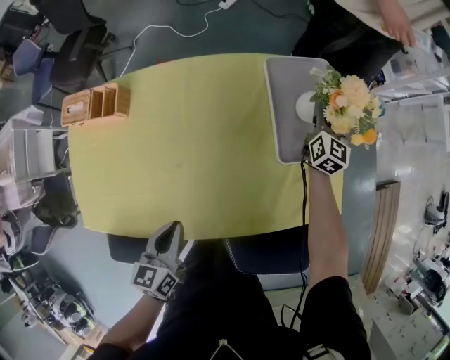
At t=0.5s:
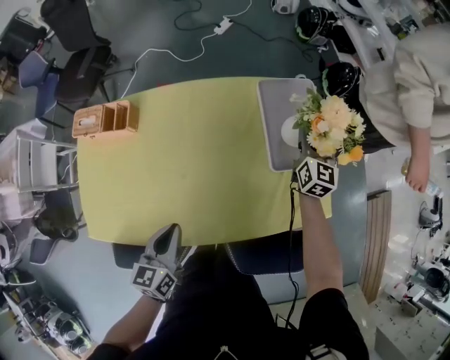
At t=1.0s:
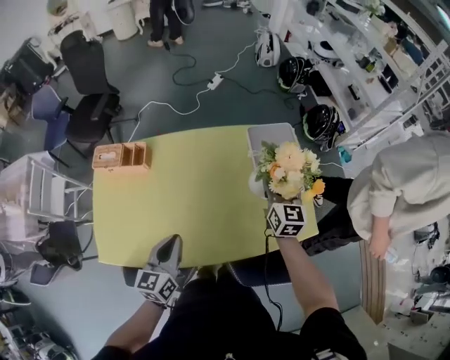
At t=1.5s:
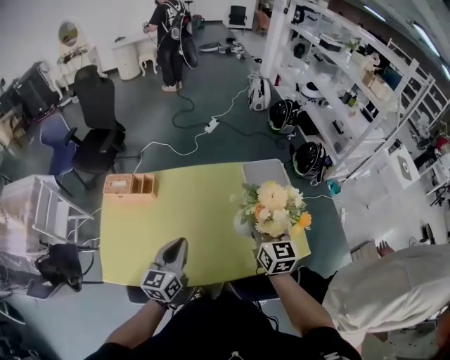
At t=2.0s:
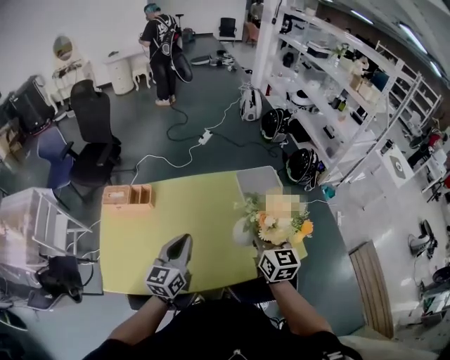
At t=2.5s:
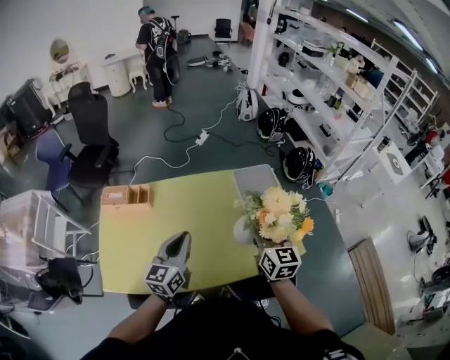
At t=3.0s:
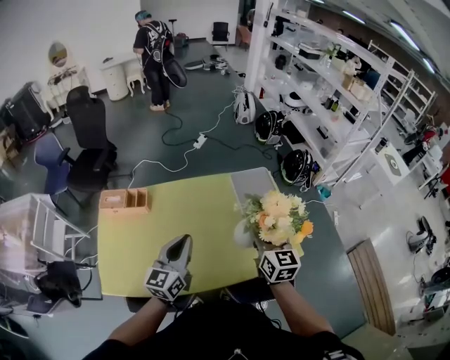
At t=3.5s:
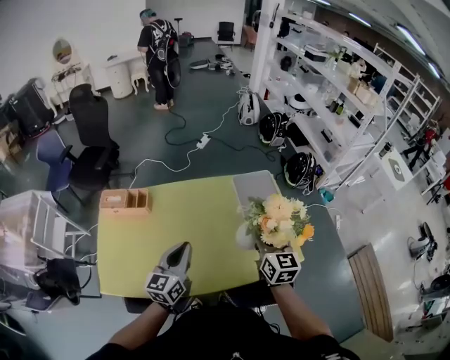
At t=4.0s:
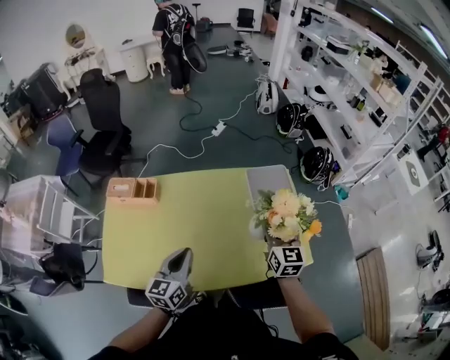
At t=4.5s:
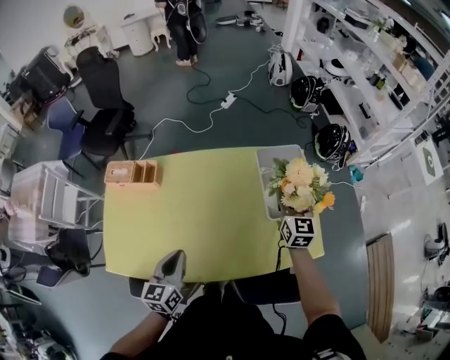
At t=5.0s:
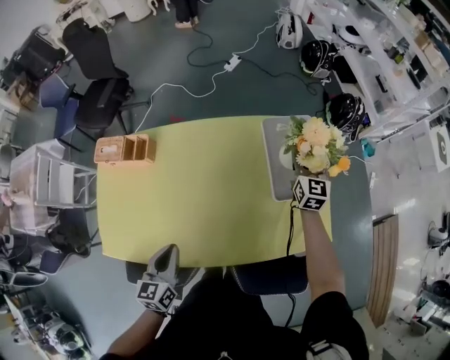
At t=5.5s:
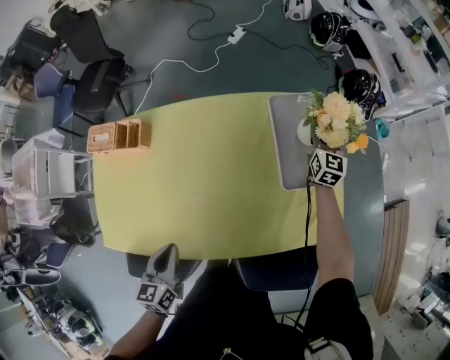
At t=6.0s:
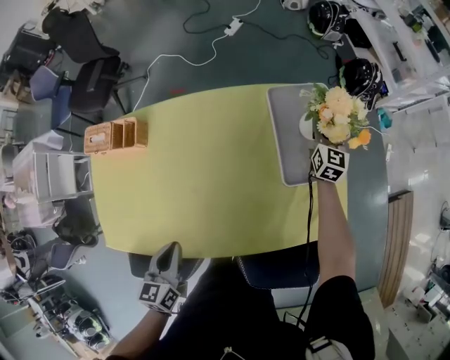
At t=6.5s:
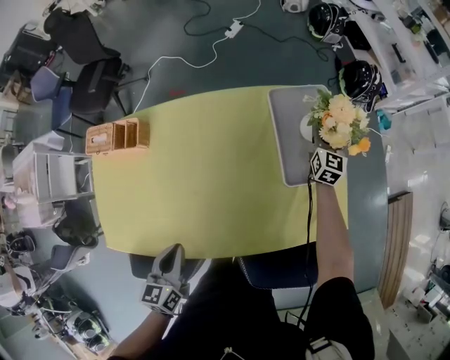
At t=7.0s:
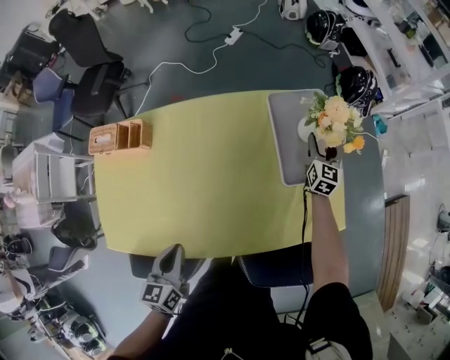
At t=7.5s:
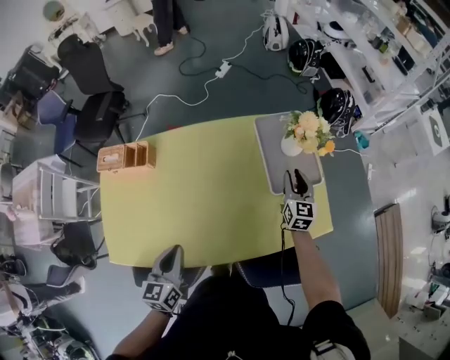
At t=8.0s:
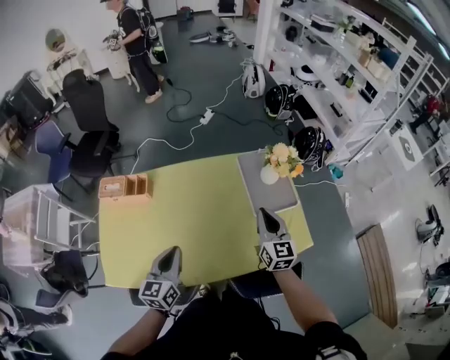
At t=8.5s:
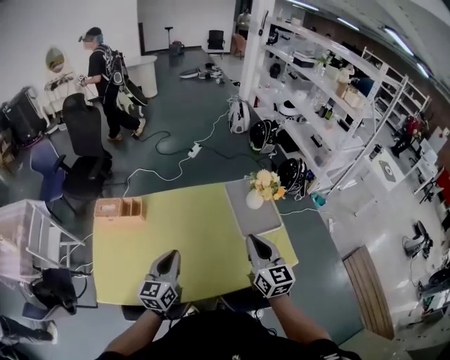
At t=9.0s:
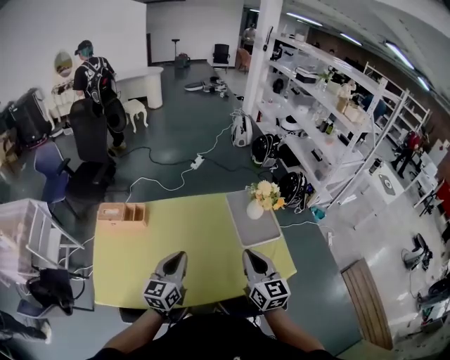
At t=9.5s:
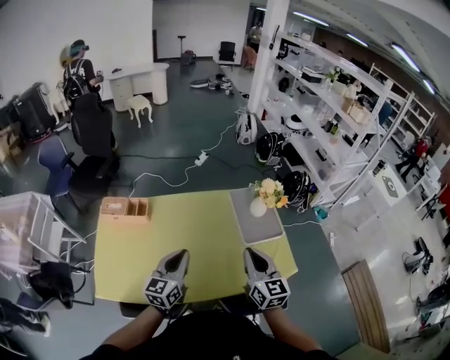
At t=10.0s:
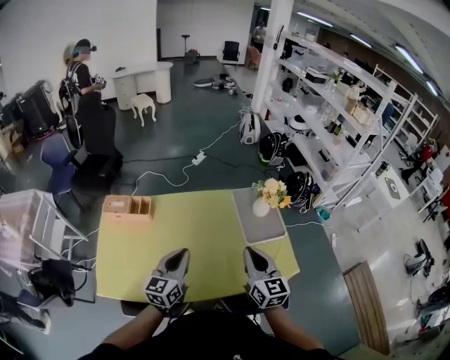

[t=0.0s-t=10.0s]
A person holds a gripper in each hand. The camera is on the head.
t=0.0s to t=2.0s: The right gripper shifts some 50 cm backward, upward and to the left. The left gripper moves upward, approximately 25 cm, and swivels roughly 30 degrees.
t=2.0s to t=4.0s: The right gripper heads forward, covering some 5 cm. The left gripper ends up about 5 cm from where it was.
t=4.0s to t=6.0s: The right gripper is displaced forward, downward and to the right by about 40 cm. Meanwhile the left gripper shifts roughly 15 cm downward, and turns by roughly 20 degrees.
t=6.0s to t=8.0s: The right gripper goes about 40 cm backward, upward and to the left, and closes. Meanwhile the left gripper is displaced upward by some 15 cm, and rotates approximately 20 degrees.
t=8.0s to t=10.0s: The left gripper heads upward, covering approximately 5 cm. Meanwhile the right gripper shifts approximately 15 cm backward and upward.

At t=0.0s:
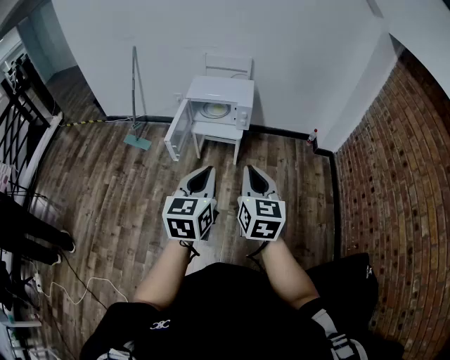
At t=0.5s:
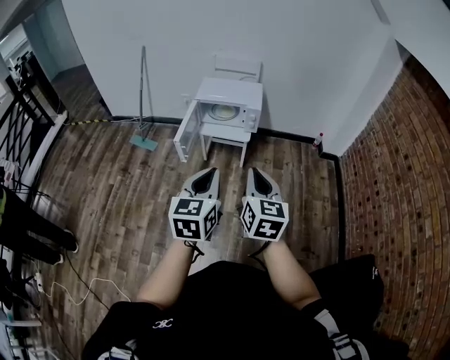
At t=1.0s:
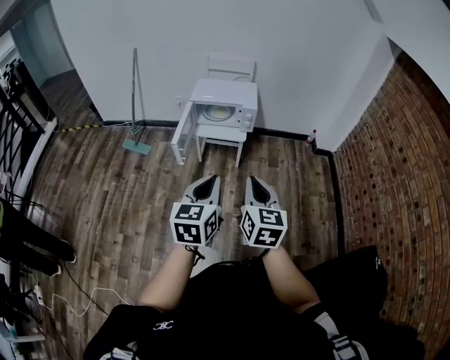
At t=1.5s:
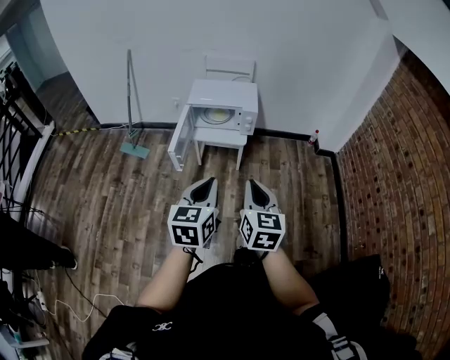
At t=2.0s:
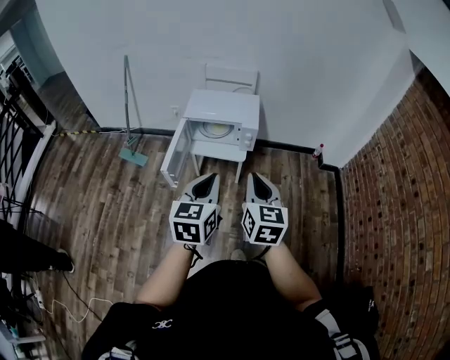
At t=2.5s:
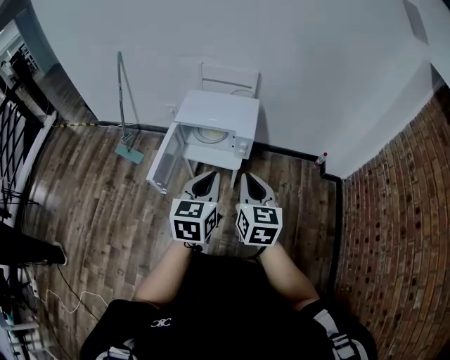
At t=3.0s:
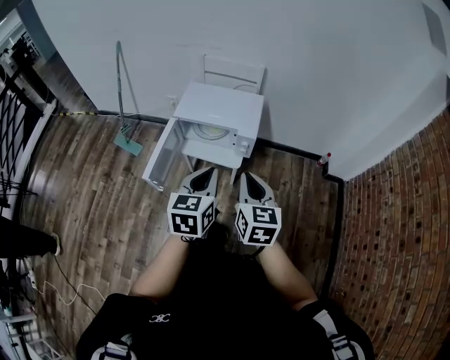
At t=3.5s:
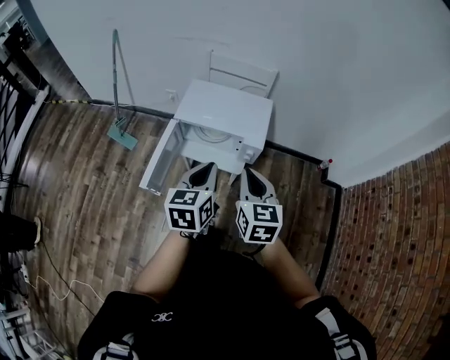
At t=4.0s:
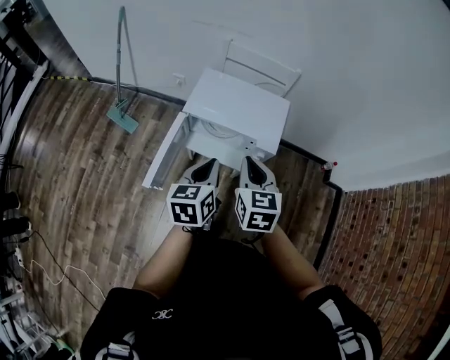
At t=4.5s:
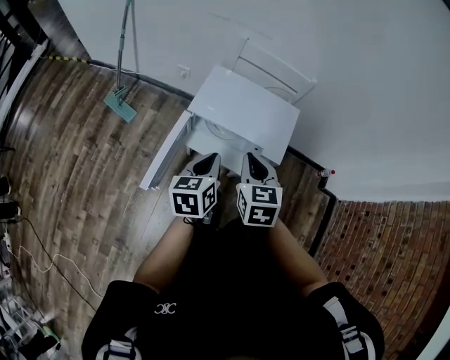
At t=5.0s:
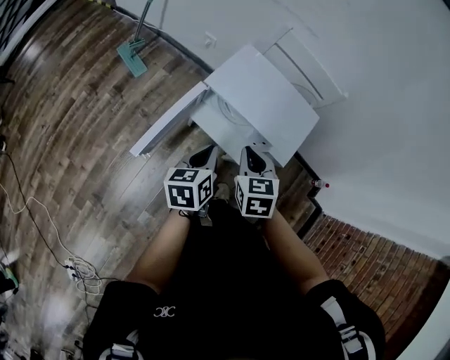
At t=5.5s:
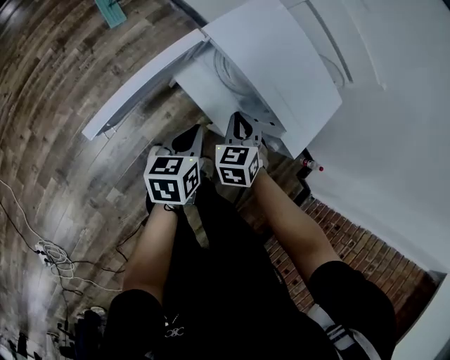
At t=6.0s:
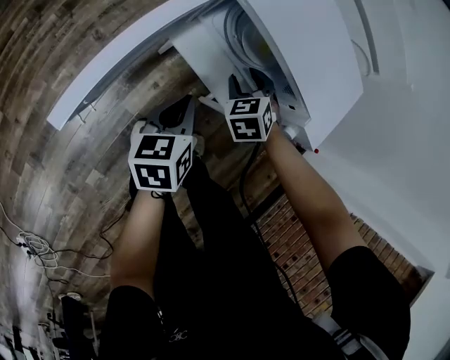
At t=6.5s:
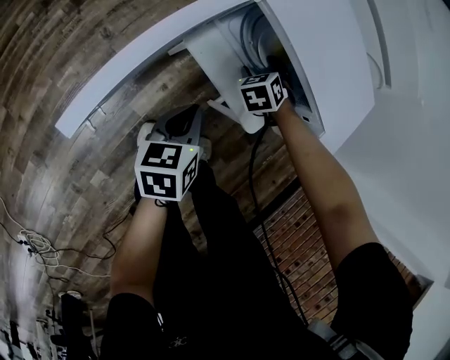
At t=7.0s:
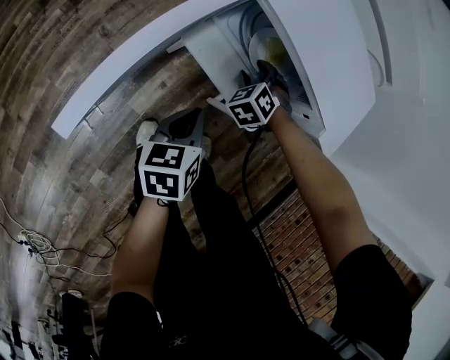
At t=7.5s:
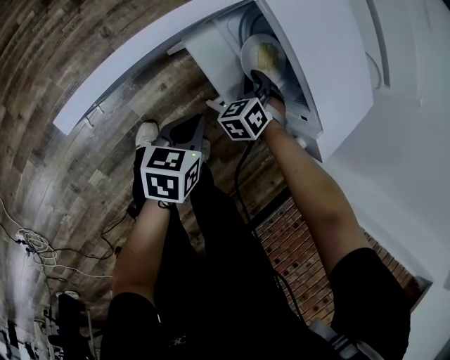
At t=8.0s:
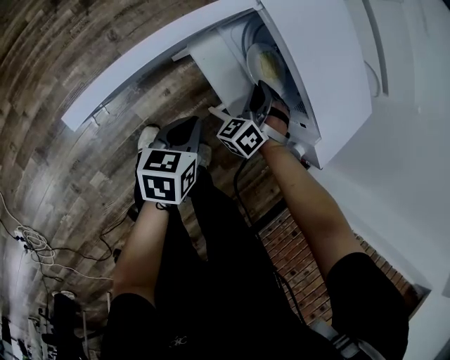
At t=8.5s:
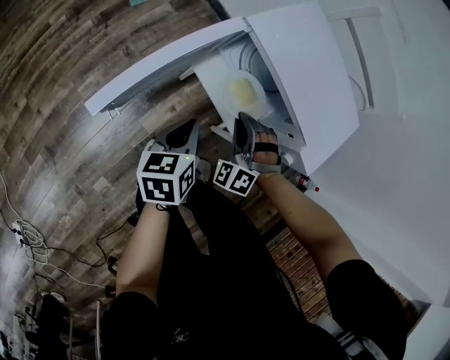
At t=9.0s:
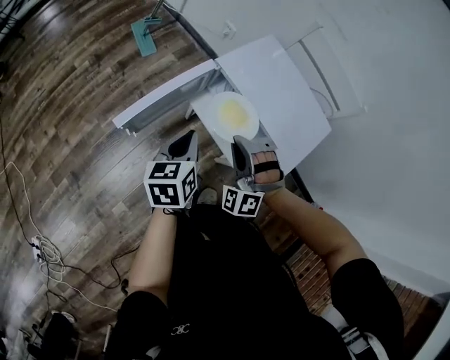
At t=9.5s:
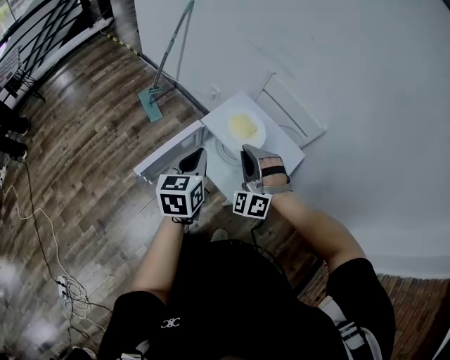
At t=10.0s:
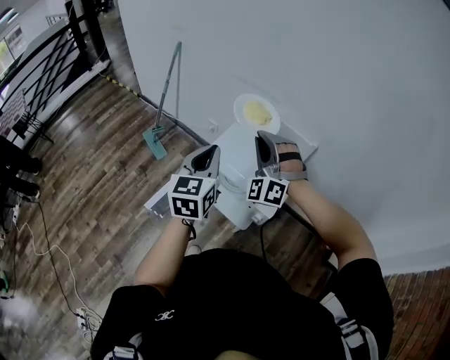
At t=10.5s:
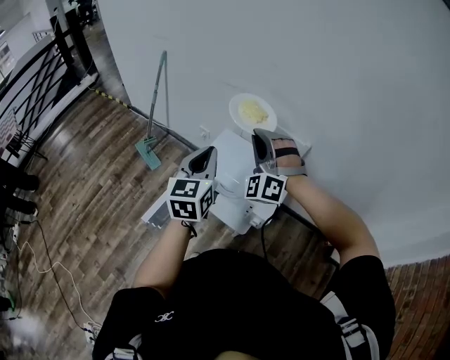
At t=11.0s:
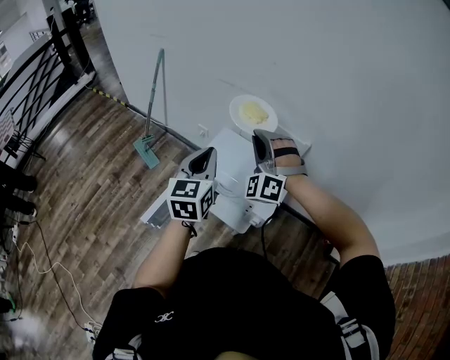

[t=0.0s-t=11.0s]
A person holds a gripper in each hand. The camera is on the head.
t=0.0s to t=2.0s: The grippers both shift forward by about 20 cm.
t=2.0s to t=3.5s: Both grippers travel together forward, approximately 25 cm.
t=3.5s to t=5.5s: The right gripper shifts some 40 cm downward and forward, and rolls counterclockwise, seen from behind, by some 50 degrees. Meanwhile the left gripper travels downward by approximately 30 cm, and swivels approximately 40 degrees.
t=5.5s to t=7.5s: Both grippers travel together downward, roughly 15 cm. The right gripper rotates roughly 30 degrees, and opens, then closes again.
t=7.5s to t=9.0s: The two grippers go about 25 cm upward. The left gripper changes its angle by approximately 20 degrees. Meanwhile the right gripper swivels about 50 degrees.
t=9.0s to t=11.0s: The left gripper heads upward, covering approximately 30 cm, and turns by about 30 degrees. The right gripper is displaced upward and forward by some 35 cm, and rotates some 20 degrees.

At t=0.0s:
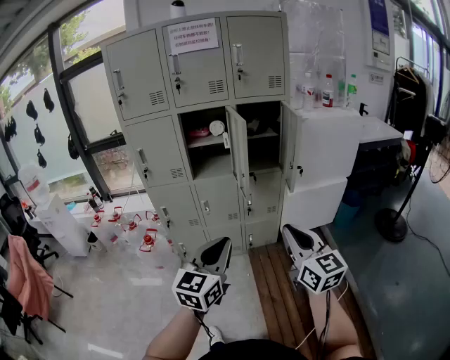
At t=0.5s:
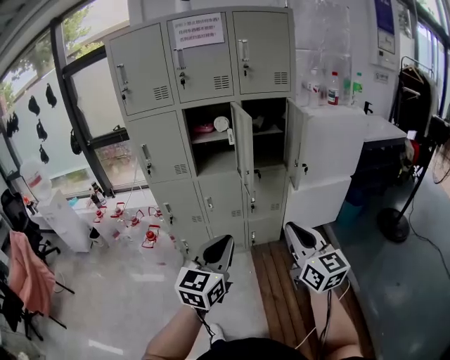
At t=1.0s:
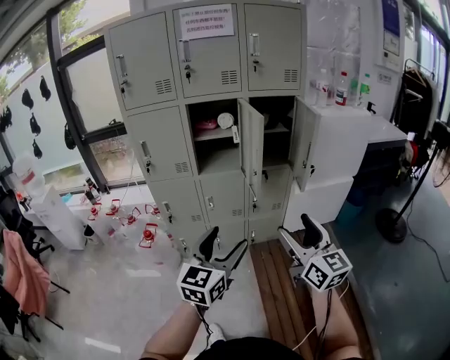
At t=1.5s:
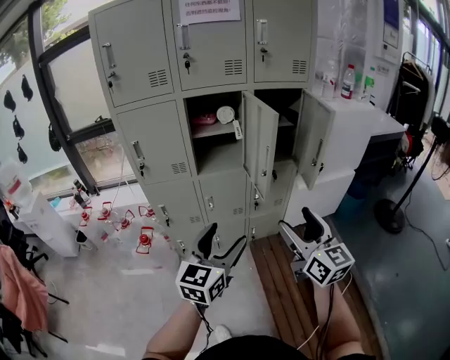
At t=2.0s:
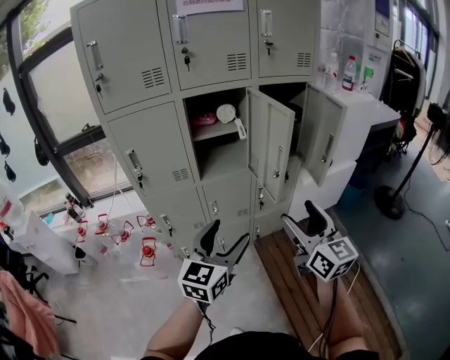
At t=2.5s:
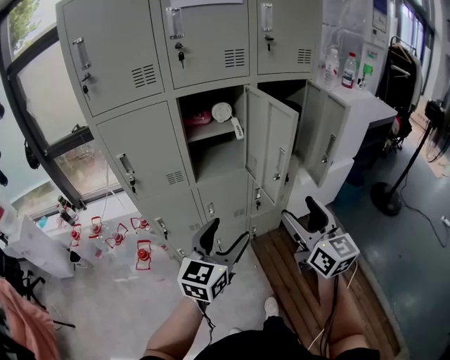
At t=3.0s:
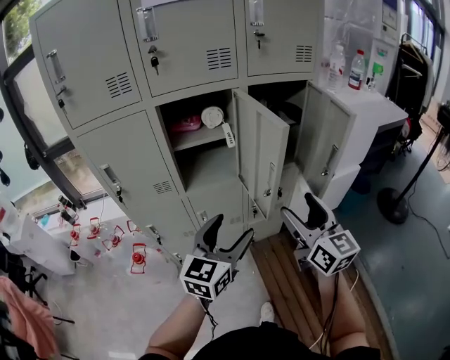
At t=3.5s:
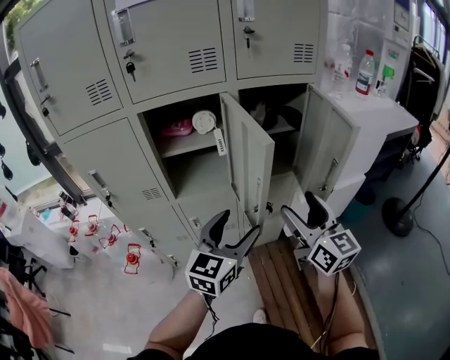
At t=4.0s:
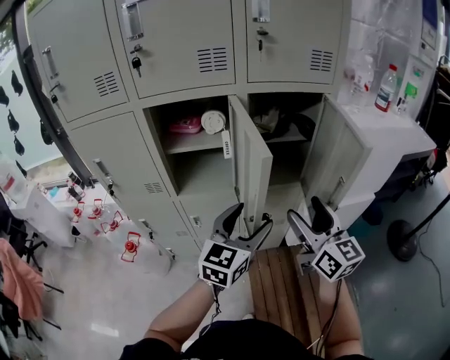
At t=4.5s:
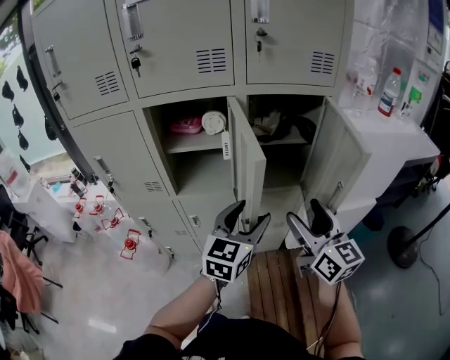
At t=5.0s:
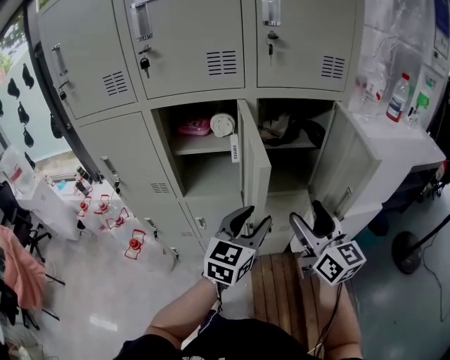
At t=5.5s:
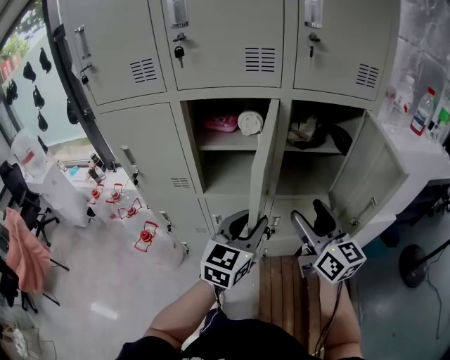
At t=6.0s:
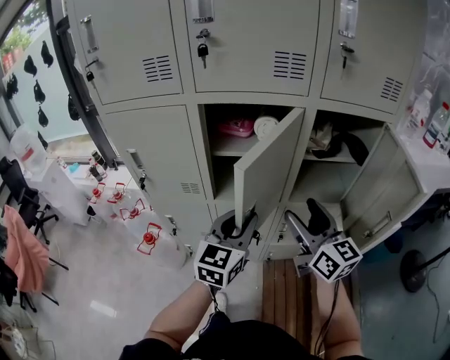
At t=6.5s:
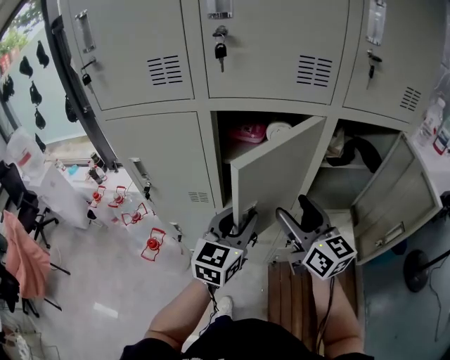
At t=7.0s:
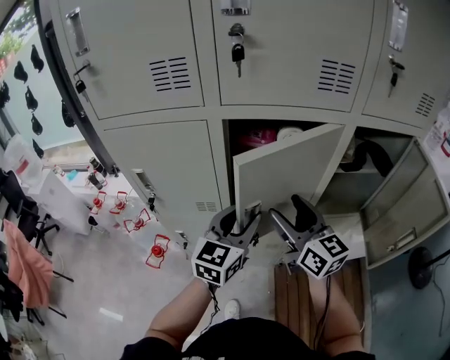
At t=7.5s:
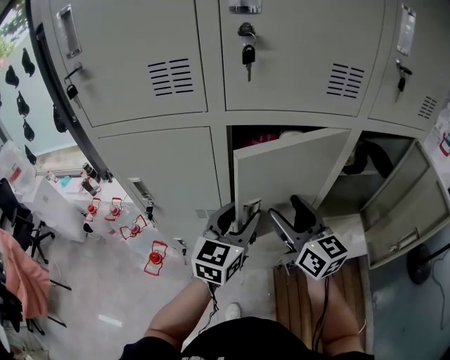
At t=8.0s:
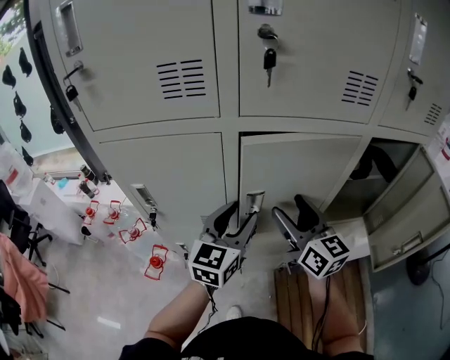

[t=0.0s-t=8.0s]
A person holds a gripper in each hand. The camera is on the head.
t=0.0s to t=2.0s: The grippers both shift forward and to the left by approximately 25 cm. The right gripper opens up, while the left gripper opens up.
t=2.0s to t=4.0s: Both grippers travel together forward and to the right, approximately 30 cm.
t=4.0s to t=6.0s: The right gripper moves to the left and forward, roughly 15 cm. Meanwhile the left gripper shifts some 15 cm to the left, and closes.
t=6.0s to t=8.0s: The right gripper goes about 20 cm to the left and forward, while the left gripper travels forward and to the left by about 20 cm.
